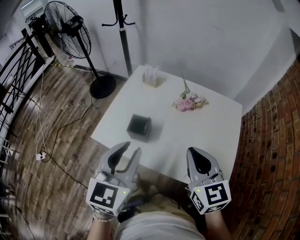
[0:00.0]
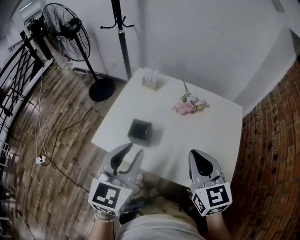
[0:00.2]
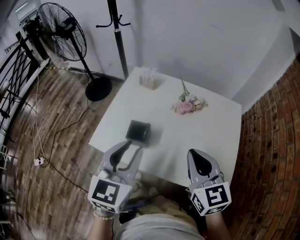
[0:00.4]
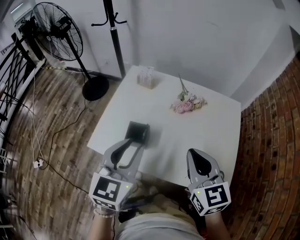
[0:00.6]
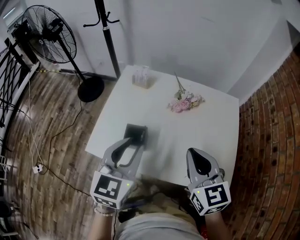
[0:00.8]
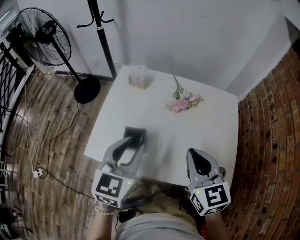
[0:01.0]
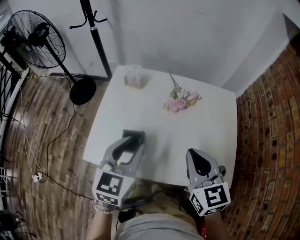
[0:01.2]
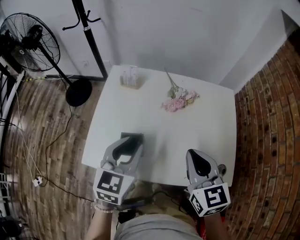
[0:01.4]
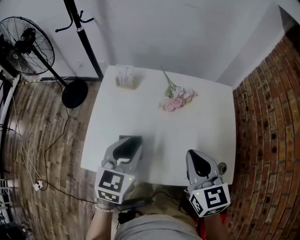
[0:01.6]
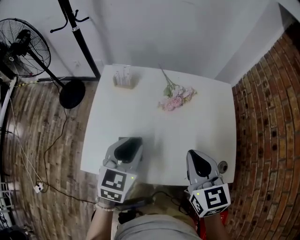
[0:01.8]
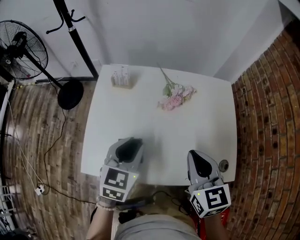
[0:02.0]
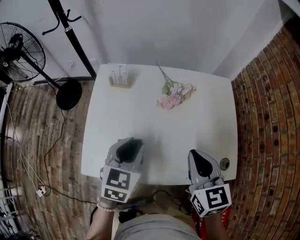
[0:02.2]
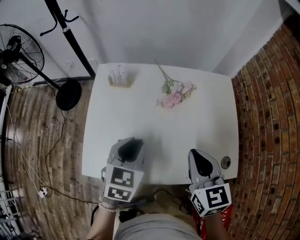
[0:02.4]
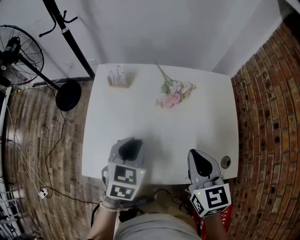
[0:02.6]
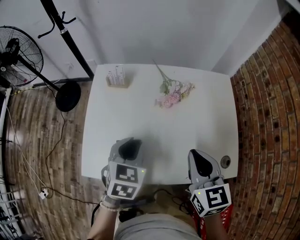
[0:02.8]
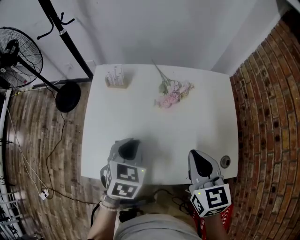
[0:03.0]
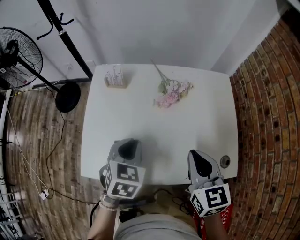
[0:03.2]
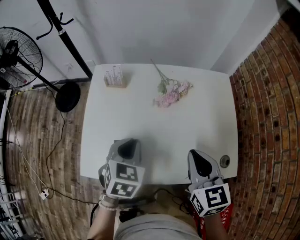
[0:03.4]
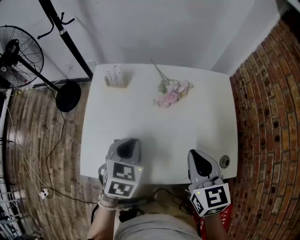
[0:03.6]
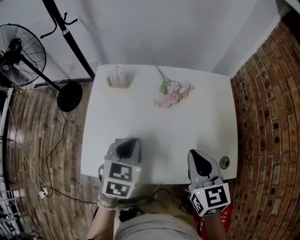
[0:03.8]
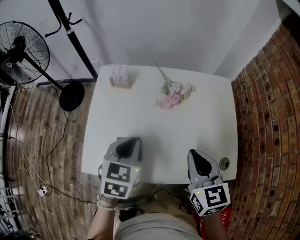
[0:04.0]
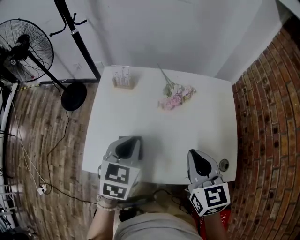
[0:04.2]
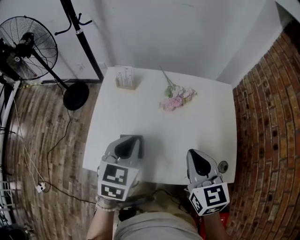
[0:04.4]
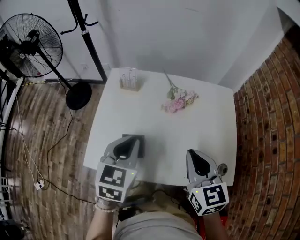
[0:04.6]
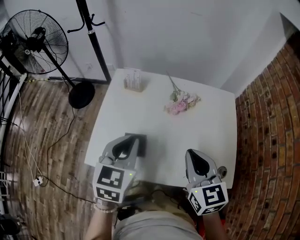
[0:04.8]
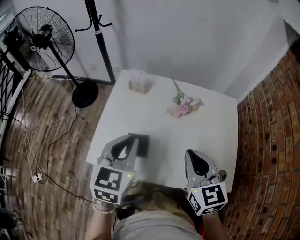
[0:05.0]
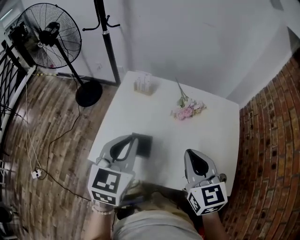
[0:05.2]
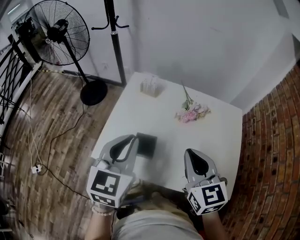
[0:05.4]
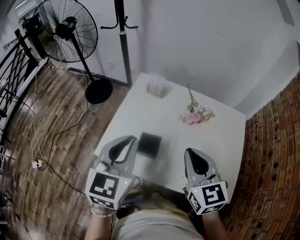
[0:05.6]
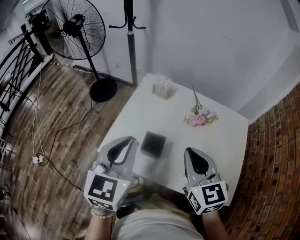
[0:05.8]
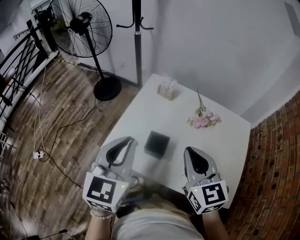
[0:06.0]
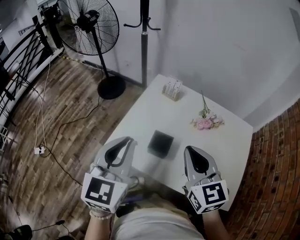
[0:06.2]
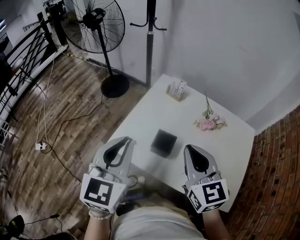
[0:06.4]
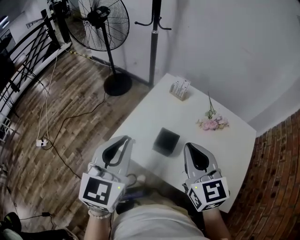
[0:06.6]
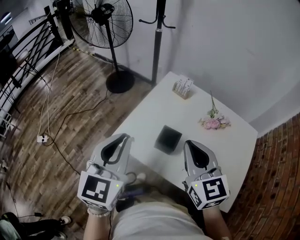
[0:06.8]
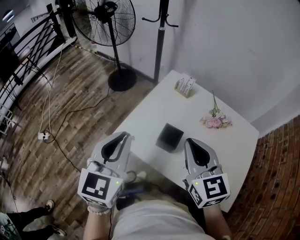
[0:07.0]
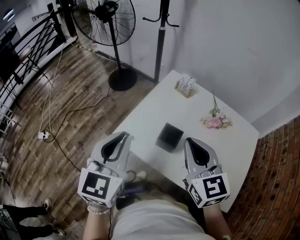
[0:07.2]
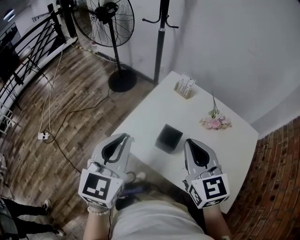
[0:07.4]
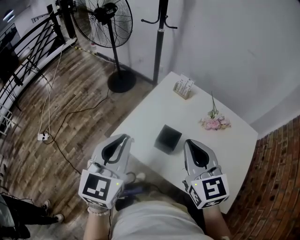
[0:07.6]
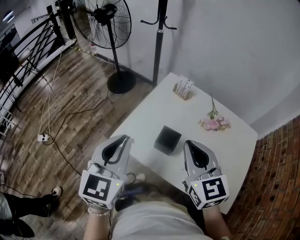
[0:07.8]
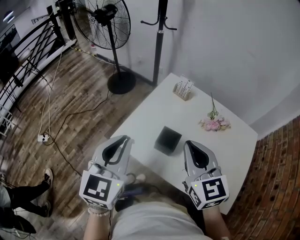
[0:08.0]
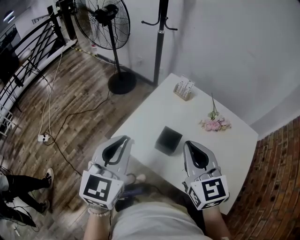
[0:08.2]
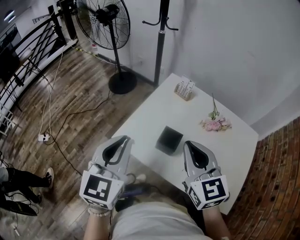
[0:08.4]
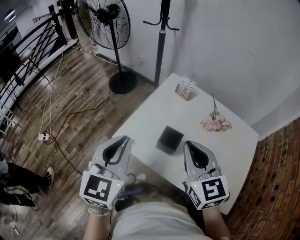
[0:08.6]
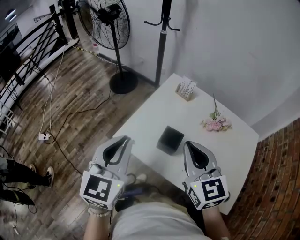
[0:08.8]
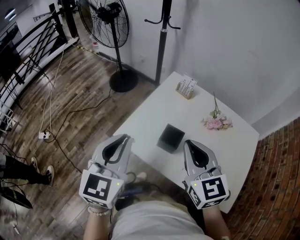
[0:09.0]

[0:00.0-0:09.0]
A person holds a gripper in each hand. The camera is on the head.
0:00.0 to 0:01.6: The right gripper moves forward, approximately 5 cm. The left gripper moves forward and downward, about 15 cm, and changes its angle by approximately 20 degrees.
0:01.6 to 0:03.0: The left gripper travels downward by roughly 5 cm, and turns by roughly 20 degrees.
0:03.0 to 0:04.4: The left gripper heads upward, covering about 5 cm.
0:04.4 to 0:06.0: The left gripper goes roughly 15 cm upward, to the left and backward, and changes its angle by some 30 degrees. Meanwhile the right gripper shifts about 10 cm to the left and upward, and changes its angle by approximately 20 degrees.
0:06.0 to 0:07.6: The grippers both shift to the left by approximately 5 cm.
0:07.6 to 0:09.0: The grippers stay close to where they were, moving slightly.

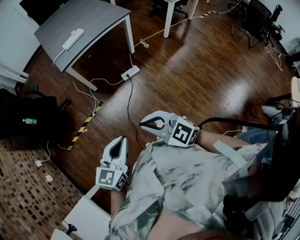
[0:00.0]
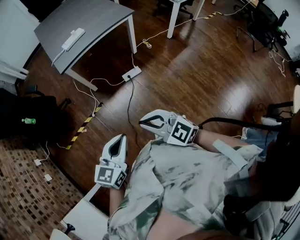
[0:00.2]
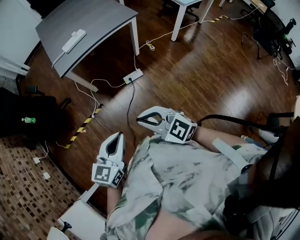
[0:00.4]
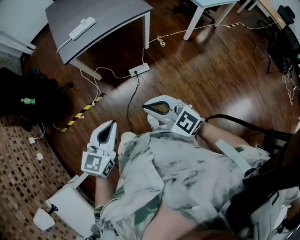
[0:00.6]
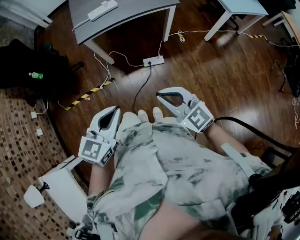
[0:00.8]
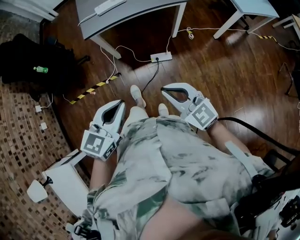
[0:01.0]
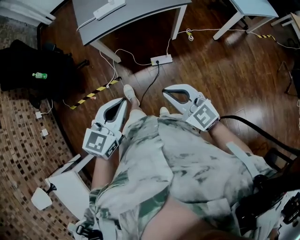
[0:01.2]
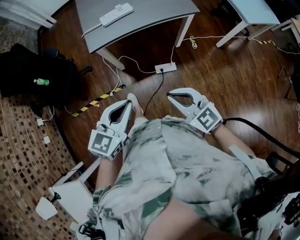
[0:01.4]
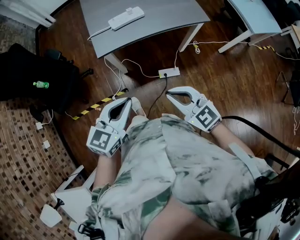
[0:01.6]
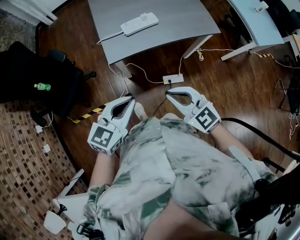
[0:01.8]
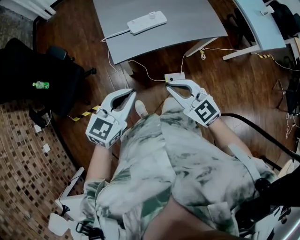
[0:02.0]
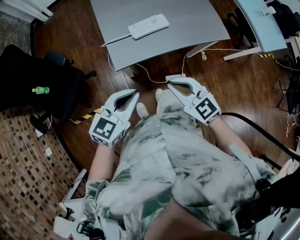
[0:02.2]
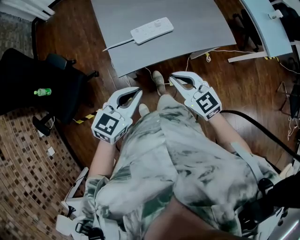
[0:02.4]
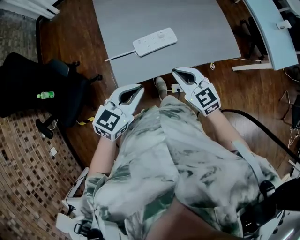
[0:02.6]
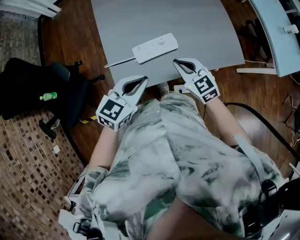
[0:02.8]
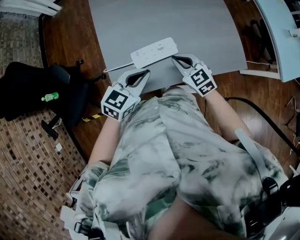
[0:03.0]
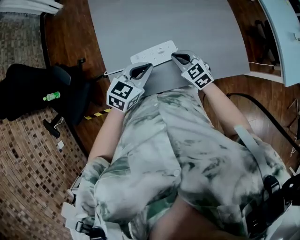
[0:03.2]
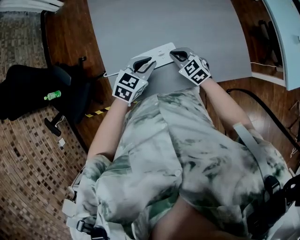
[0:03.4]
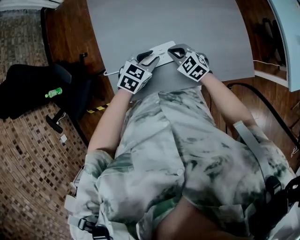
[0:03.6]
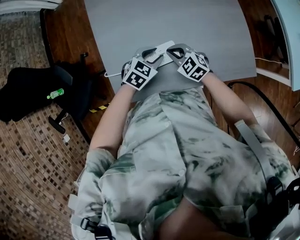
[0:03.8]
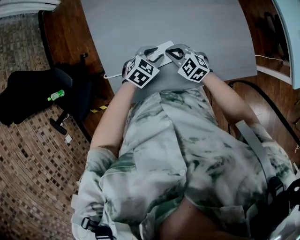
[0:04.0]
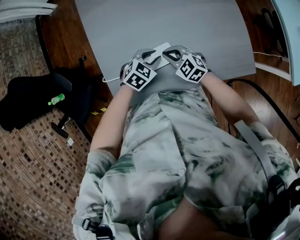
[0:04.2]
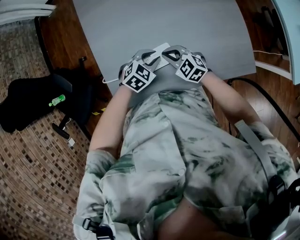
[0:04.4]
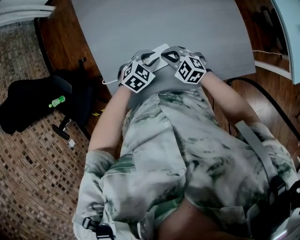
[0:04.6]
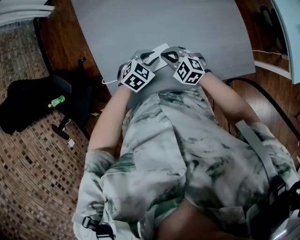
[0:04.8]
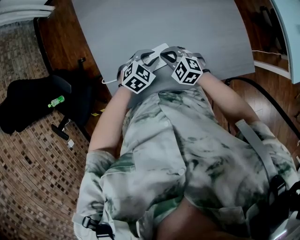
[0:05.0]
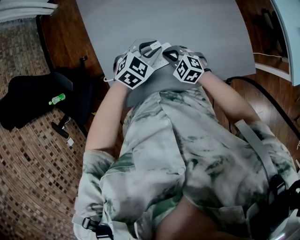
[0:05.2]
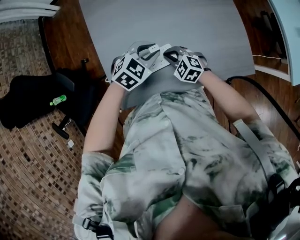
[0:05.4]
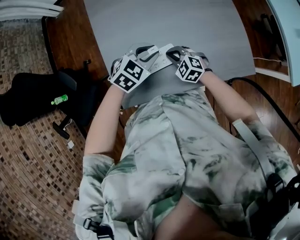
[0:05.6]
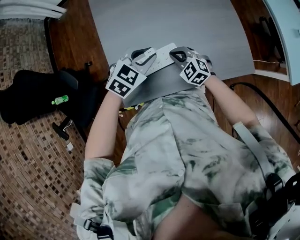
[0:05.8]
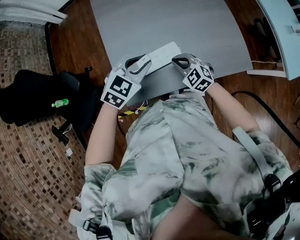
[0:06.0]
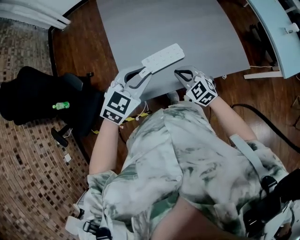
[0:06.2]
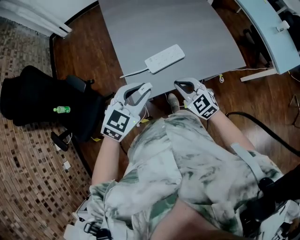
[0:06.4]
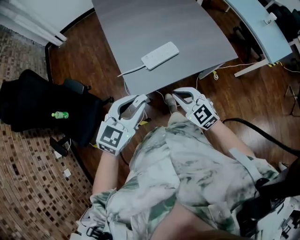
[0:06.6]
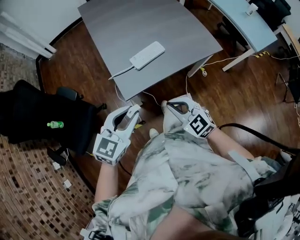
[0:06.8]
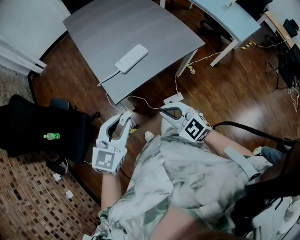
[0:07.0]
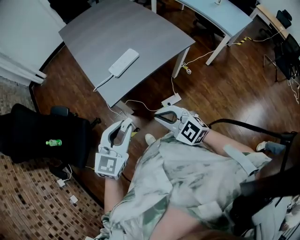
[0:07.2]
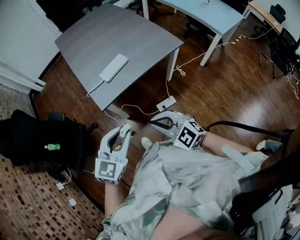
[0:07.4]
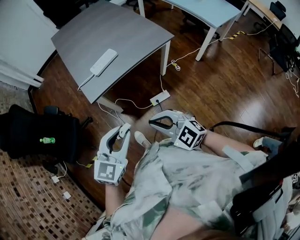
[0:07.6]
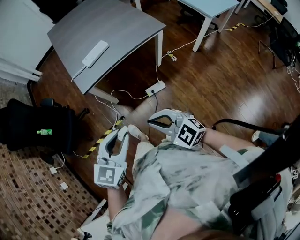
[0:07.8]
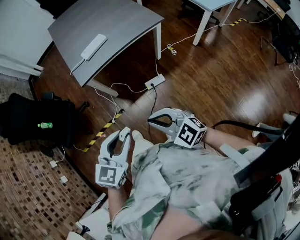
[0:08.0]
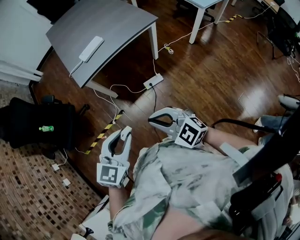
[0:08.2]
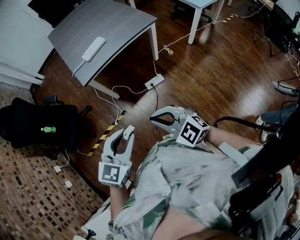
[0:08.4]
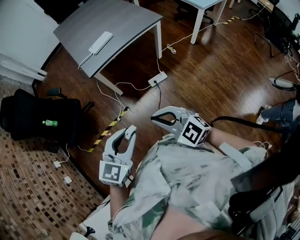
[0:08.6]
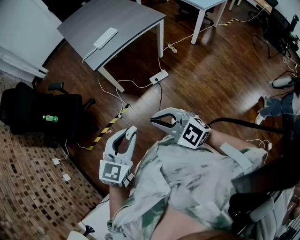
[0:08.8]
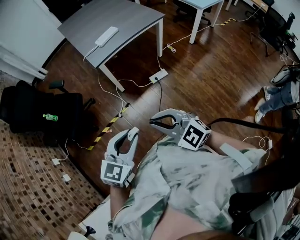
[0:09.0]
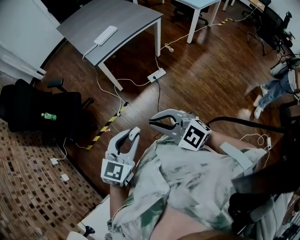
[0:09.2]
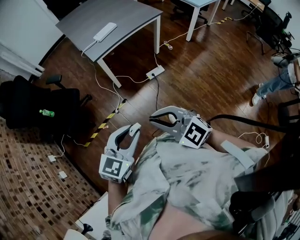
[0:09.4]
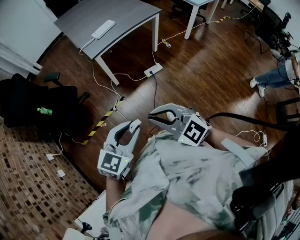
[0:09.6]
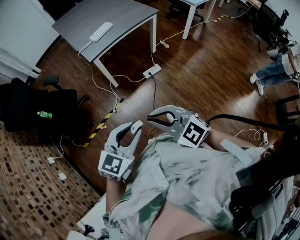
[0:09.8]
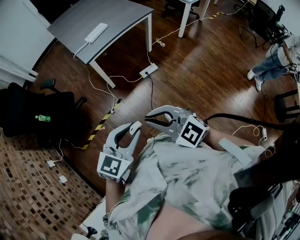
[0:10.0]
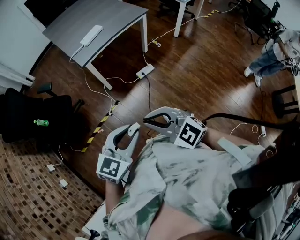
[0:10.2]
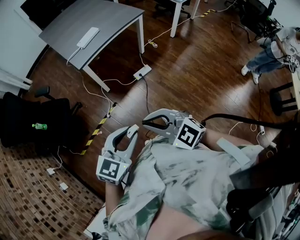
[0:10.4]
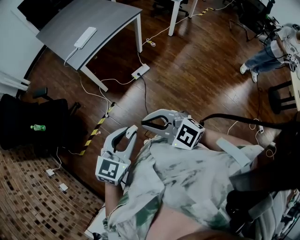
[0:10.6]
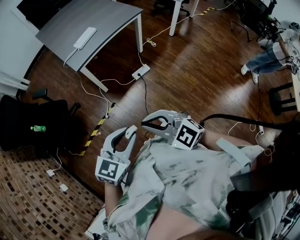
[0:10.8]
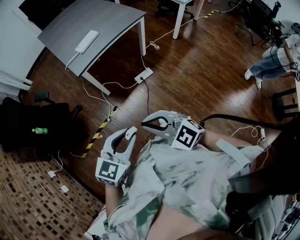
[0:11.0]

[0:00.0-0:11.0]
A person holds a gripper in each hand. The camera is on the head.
0:00.0 to 0:01.6: The grippers both shift forward by approximately 35 cm.
0:01.6 to 0:03.2: Both grippers are carried forward, about 50 cm. The right gripper shifts some 20 cm downward.
0:03.2 to 0:04.8: The right gripper moves some 5 cm. Meanwhile the left gripper shifts some 15 cm downward and forward, swivels roughly 30 degrees, and opens its fingers.
0:04.8 to 0:06.2: The left gripper goes some 25 cm upward, backward and to the left, and turns by some 20 degrees, while the right gripper shifts approximately 15 cm backward and upward.
0:06.2 to 0:07.8: Both grippers are carried backward, roughly 50 cm.
0:07.8 to 0:09.4: Both grippers move backward and to the left, some 25 cm.
0:09.4 to 0:11.0: Both grippers move forward, about 5 cm.

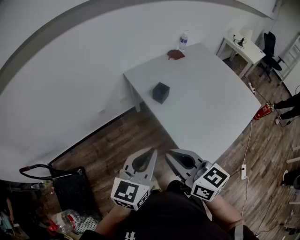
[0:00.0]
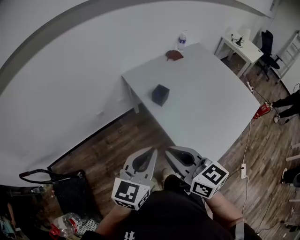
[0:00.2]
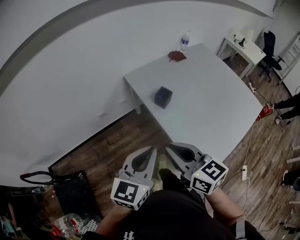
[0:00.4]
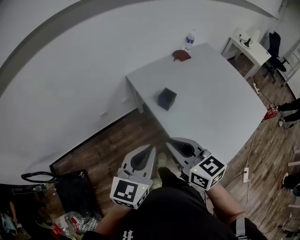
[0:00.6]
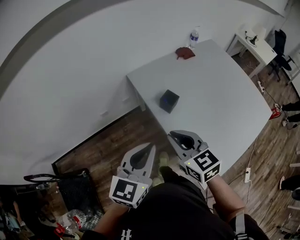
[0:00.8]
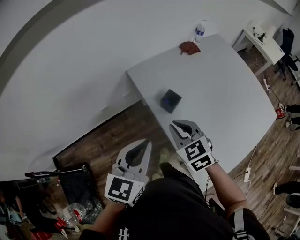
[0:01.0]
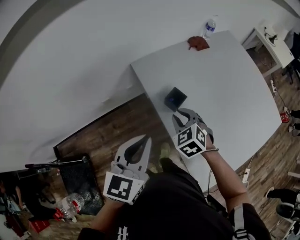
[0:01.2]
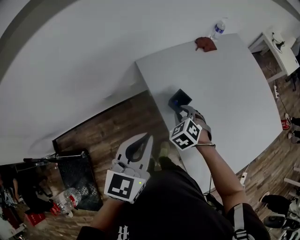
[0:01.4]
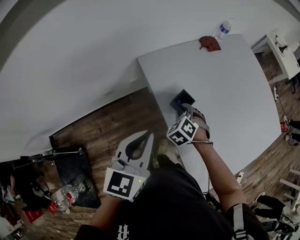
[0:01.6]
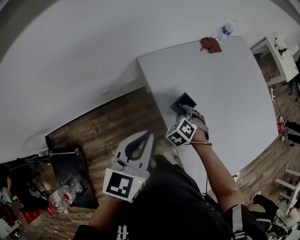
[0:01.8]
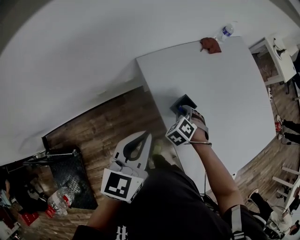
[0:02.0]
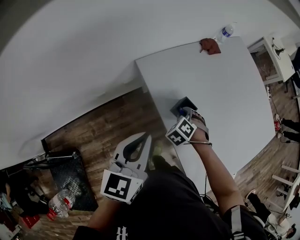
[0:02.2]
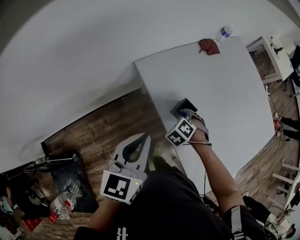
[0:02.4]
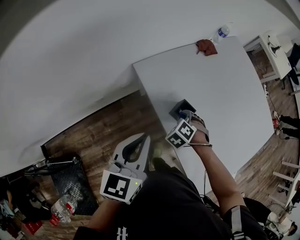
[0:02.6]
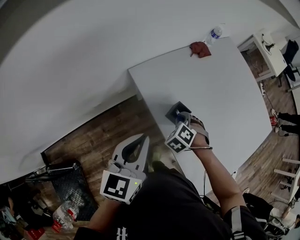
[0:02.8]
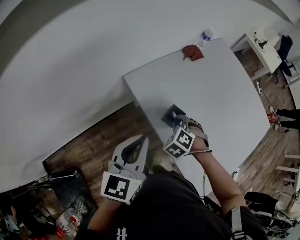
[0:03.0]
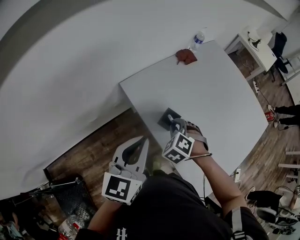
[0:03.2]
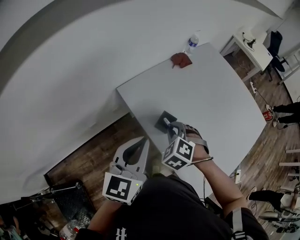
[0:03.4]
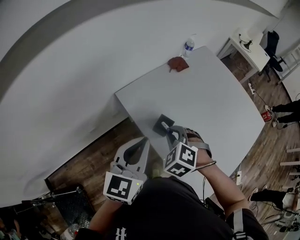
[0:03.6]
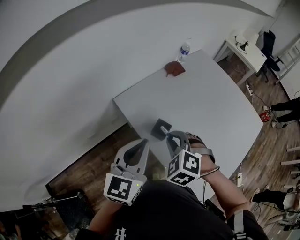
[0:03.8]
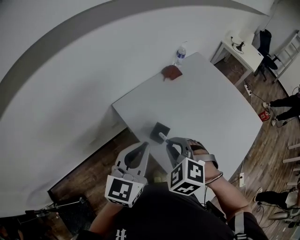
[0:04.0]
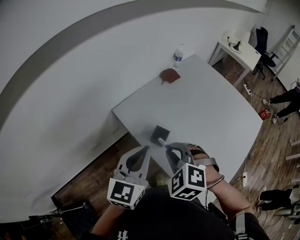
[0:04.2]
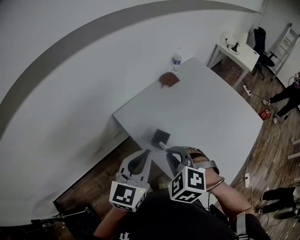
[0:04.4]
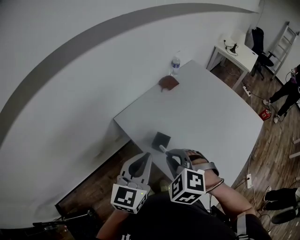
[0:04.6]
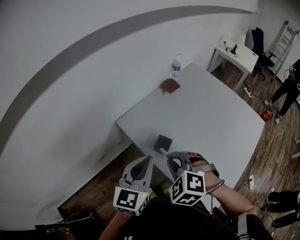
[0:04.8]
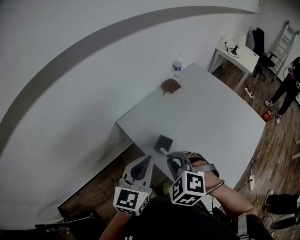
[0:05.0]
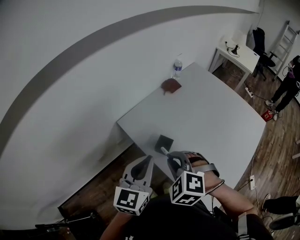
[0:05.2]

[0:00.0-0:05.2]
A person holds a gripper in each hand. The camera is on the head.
0:00.0 to 0:01.8: The left gripper shifts some 25 cm forward, while the right gripper moves forward and downward, about 50 cm, and points its fingers roughly 50 degrees further downward.
0:01.8 to 0:03.4: The right gripper shifts about 10 cm upward. The left gripper shifts by approximately 5 cm.
0:03.4 to 0:05.2: The right gripper goes some 10 cm upward and backward.
